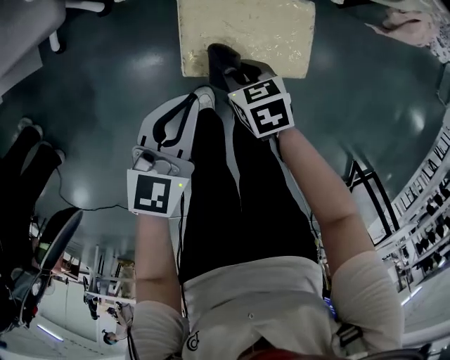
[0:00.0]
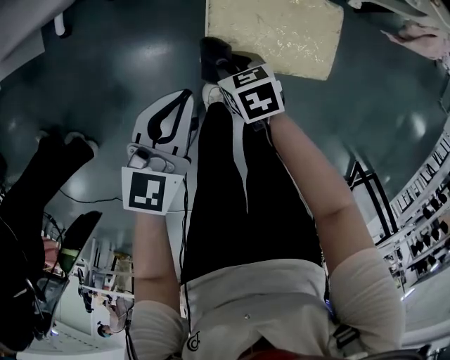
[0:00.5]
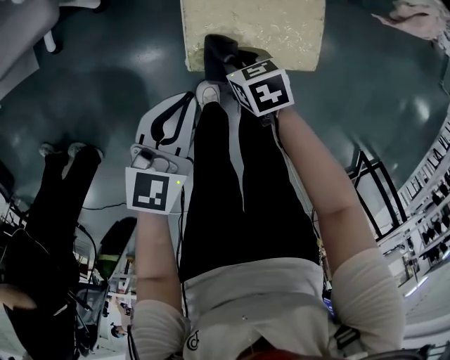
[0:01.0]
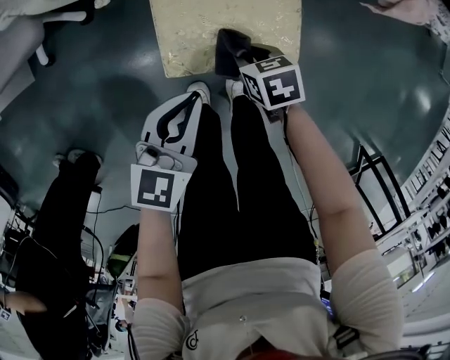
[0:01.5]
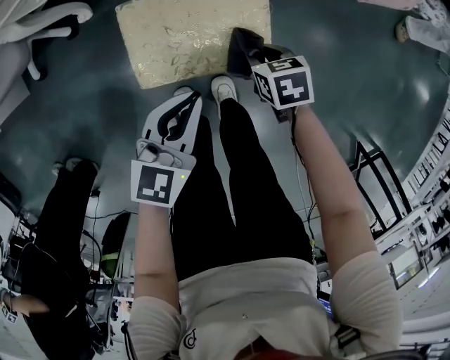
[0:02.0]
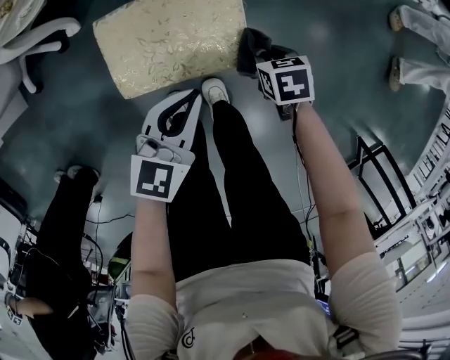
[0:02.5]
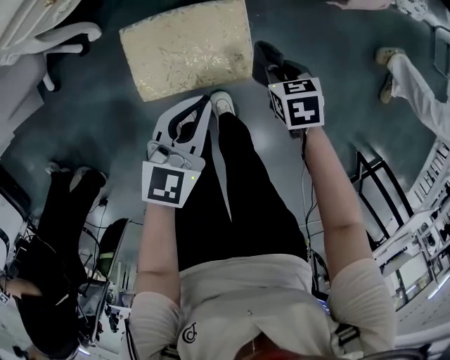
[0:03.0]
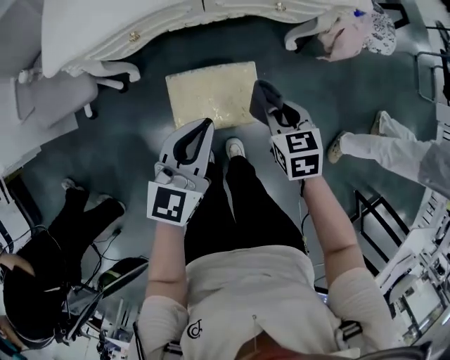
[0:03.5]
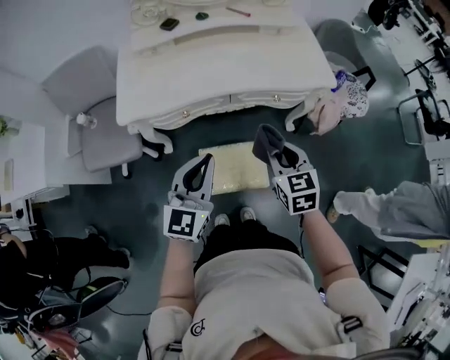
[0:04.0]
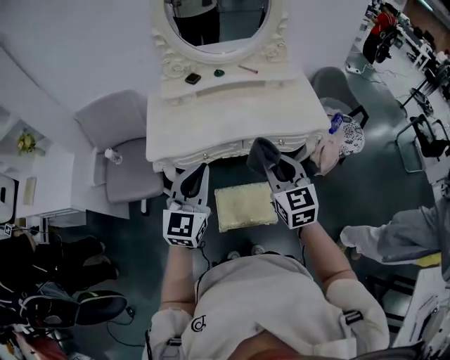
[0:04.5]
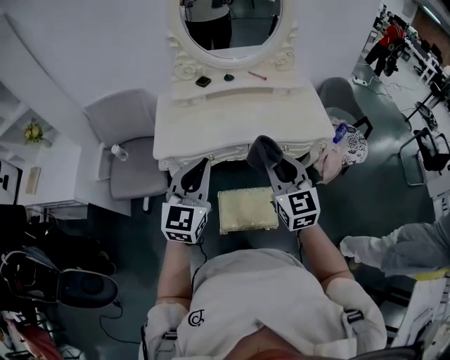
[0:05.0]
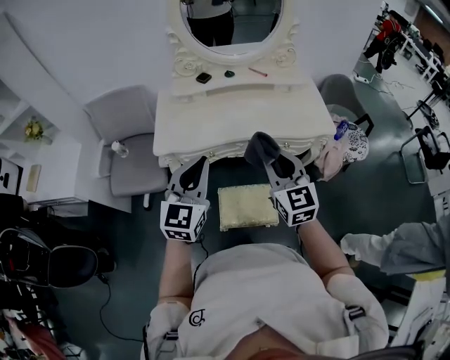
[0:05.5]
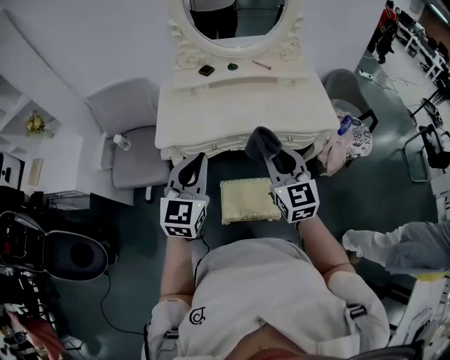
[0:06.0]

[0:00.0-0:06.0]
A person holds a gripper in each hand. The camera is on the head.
0:00.0 to 0:02.0: The left gripper moves to the right, roughly 10 cm, while the right gripper heads to the right, covering some 20 cm.
0:02.0 to 0:04.0: The grippers both shift upward by some 40 cm. The left gripper swivels approximately 30 degrees; the right gripper tips its fingers upward by roughly 40 degrees.
0:04.0 to 0:06.0: Both grippers move upward and to the left, some 20 cm. The right gripper changes its angle by about 30 degrees.

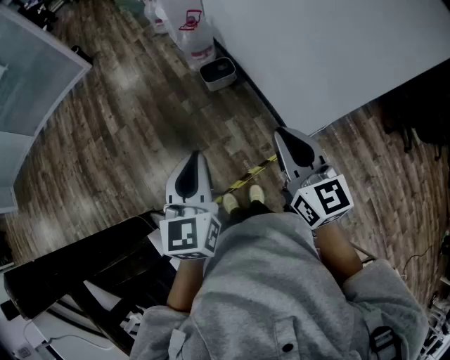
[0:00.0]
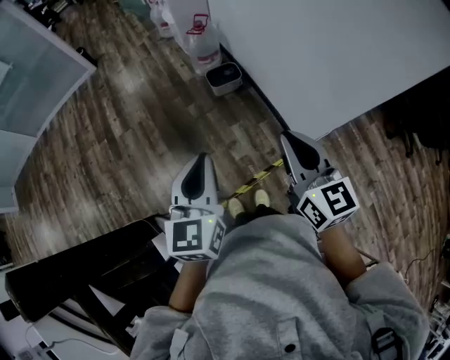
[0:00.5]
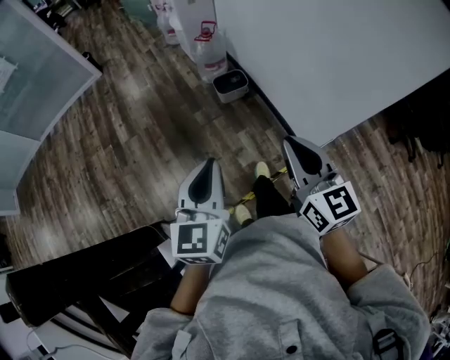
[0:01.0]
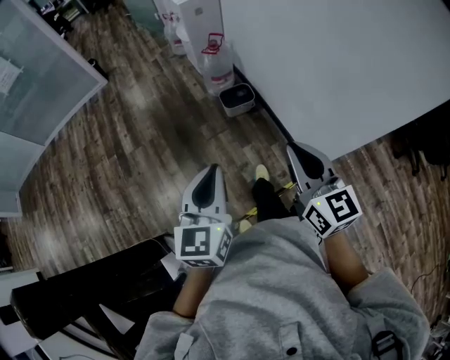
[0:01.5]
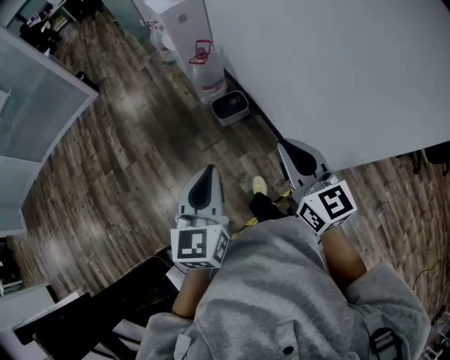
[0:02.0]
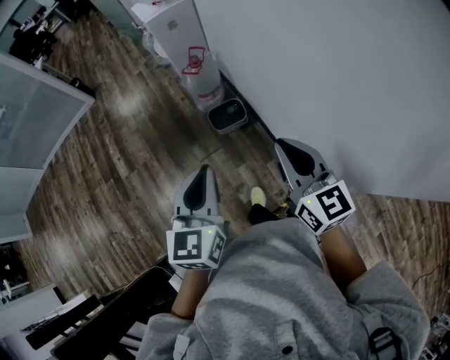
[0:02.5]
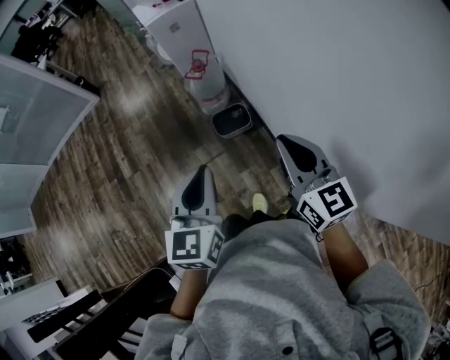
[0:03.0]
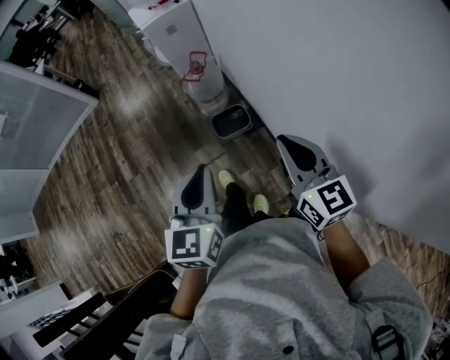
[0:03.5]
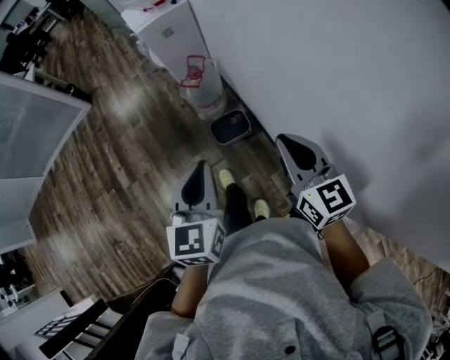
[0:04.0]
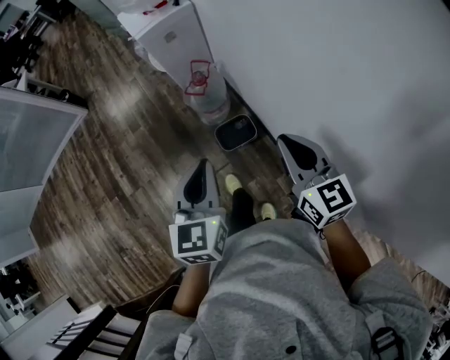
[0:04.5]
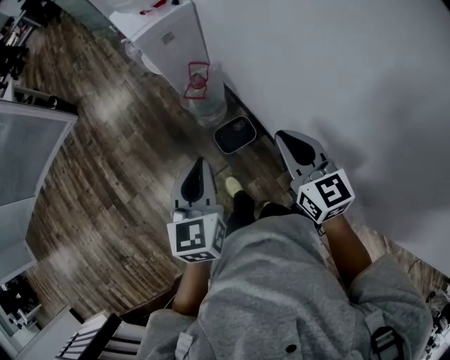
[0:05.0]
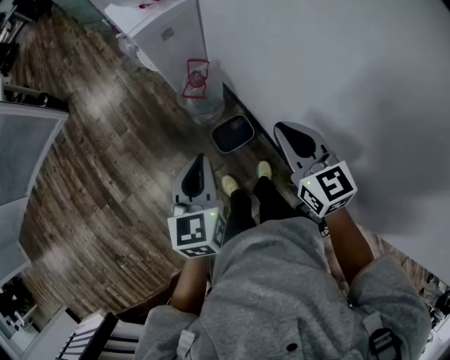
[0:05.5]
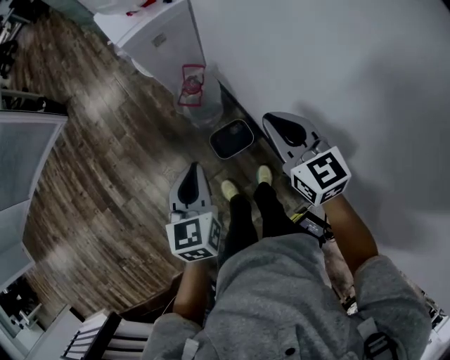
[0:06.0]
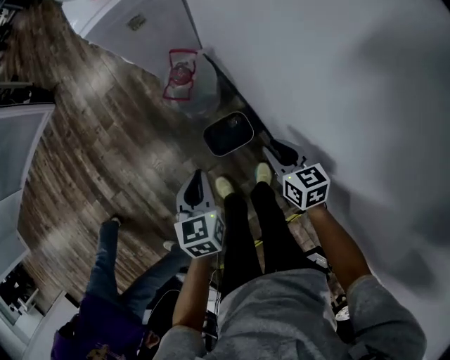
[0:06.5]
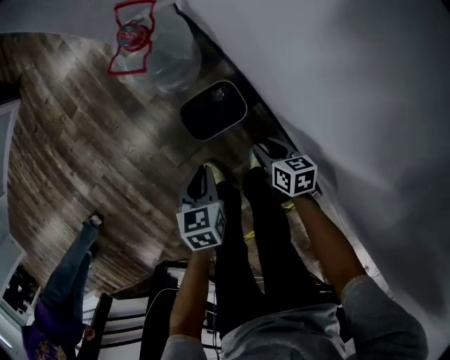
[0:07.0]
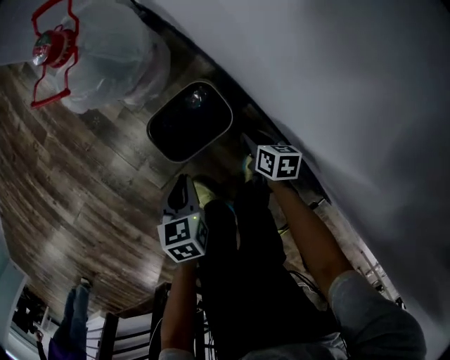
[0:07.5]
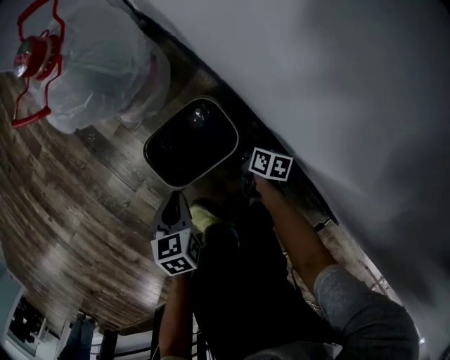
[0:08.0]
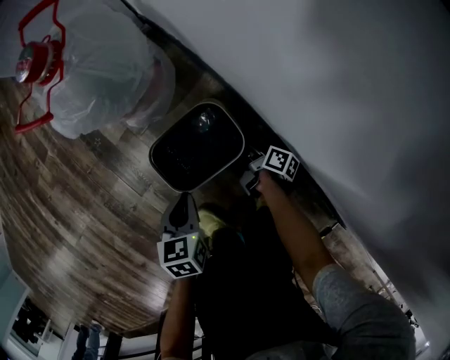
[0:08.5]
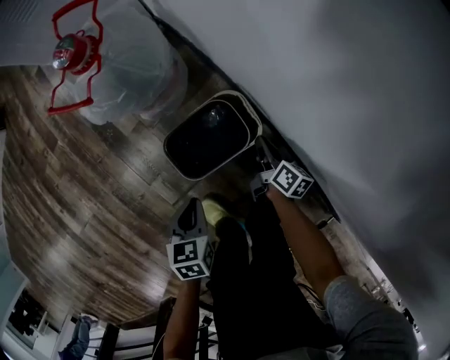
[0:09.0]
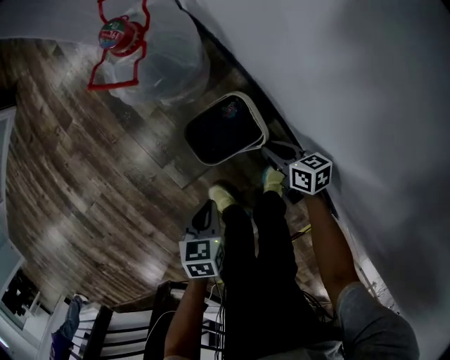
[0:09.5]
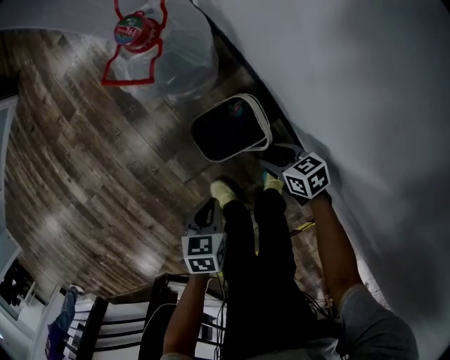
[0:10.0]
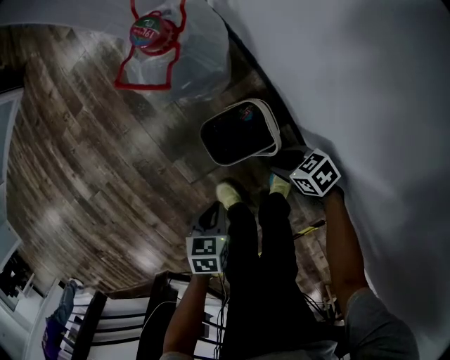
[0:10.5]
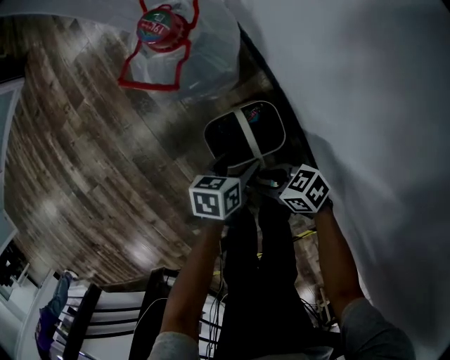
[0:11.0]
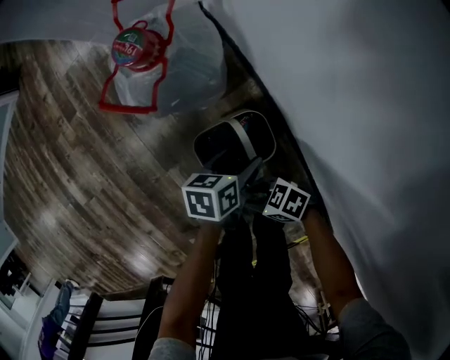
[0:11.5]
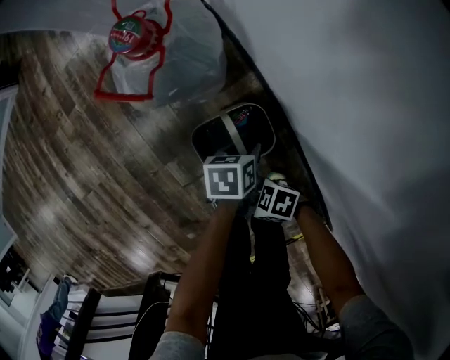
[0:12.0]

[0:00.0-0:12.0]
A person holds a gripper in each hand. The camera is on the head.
0:00.0 to 0:02.0: The two grippers go approximately 20 cm forward.
0:02.0 to 0:04.0: The two grippers go roughly 30 cm forward.
0:04.0 to 0:06.0: The right gripper goes some 25 cm forward; the left gripper is displaced forward and downward by some 25 cm.
0:06.0 to 0:08.0: The grippers both shift downward by about 80 cm. The left gripper rotates roughly 30 degrees. Meanwhile the right gripper twists some 60 degrees clockwise, seen from behind, and opens up.
0:08.0 to 0:10.0: The right gripper is displaced upward by about 20 cm, twists approximately 40 degrees counterclockwise, seen from behind, and closes and opens again; the left gripper shifts roughly 15 cm upward.
0:10.0 to 0:12.0: The right gripper changes place by some 15 cm, and rotates some 50 degrees; the left gripper shifts by about 20 cm, and opens its fingers.

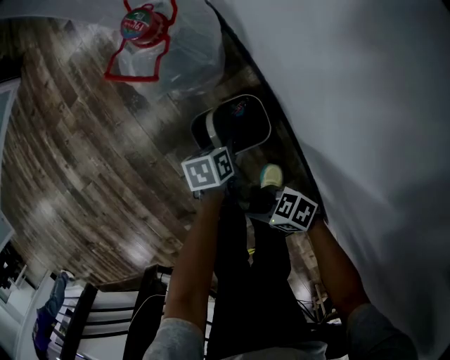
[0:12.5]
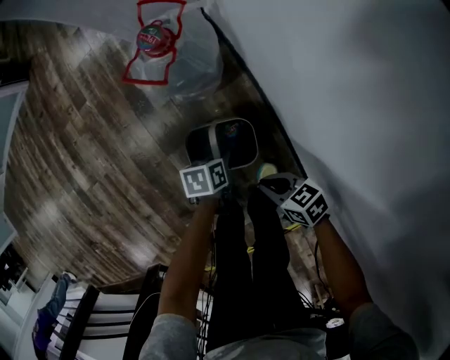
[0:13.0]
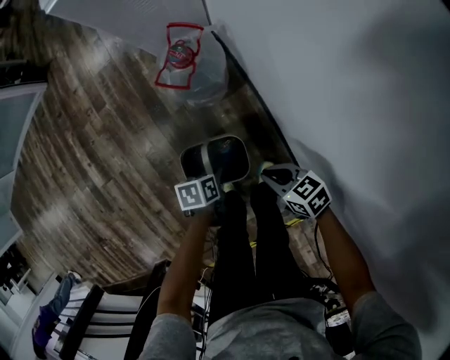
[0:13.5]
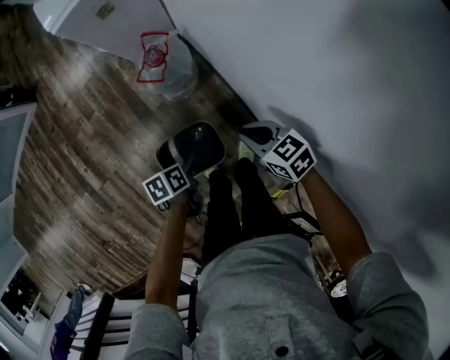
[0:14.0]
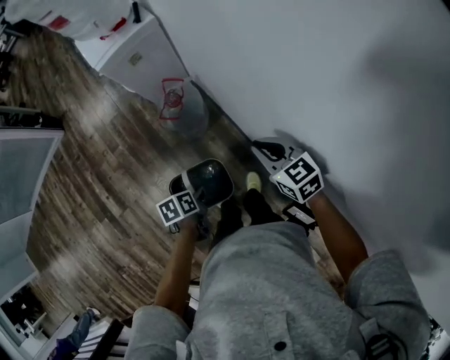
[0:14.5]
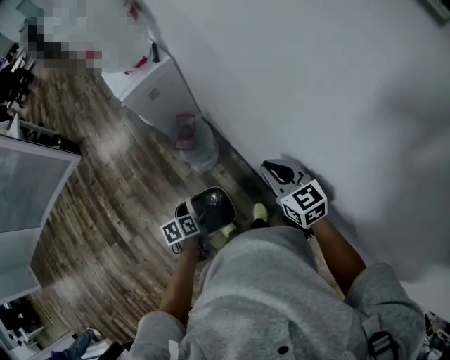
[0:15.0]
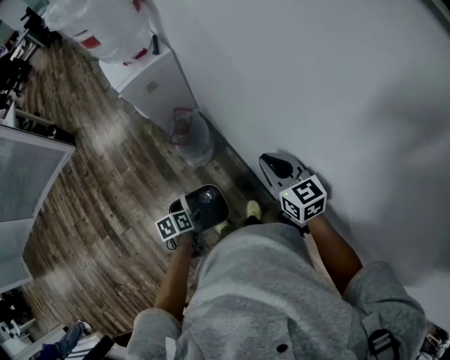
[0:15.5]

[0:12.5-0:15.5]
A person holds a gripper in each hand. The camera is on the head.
0:12.5 to 0:14.0: The two grippers go about 35 cm upward. The right gripper changes its angle by some 40 degrees, and closes its fingers.
0:14.0 to 0:15.5: The left gripper goes about 10 cm upward; the right gripper travels upward by about 25 cm, and turns by some 30 degrees.

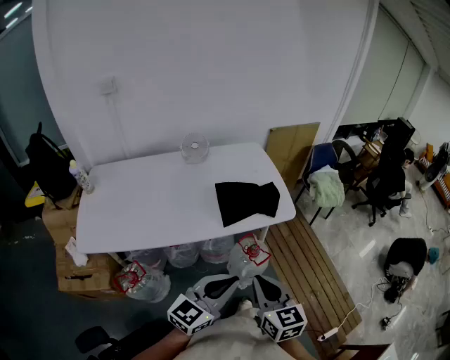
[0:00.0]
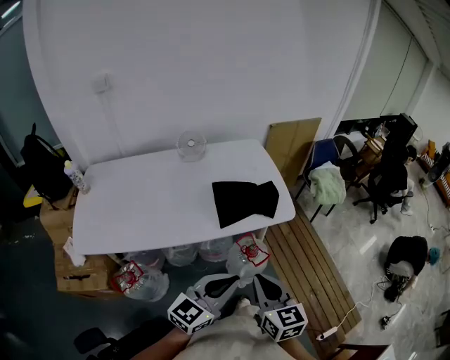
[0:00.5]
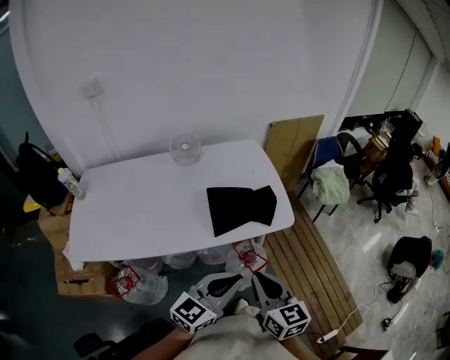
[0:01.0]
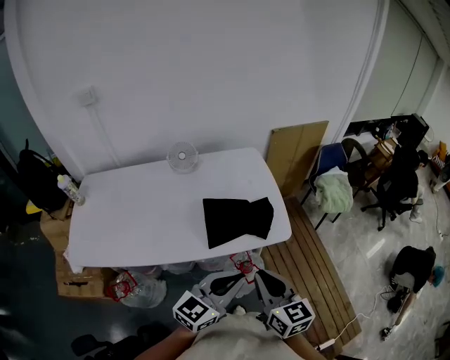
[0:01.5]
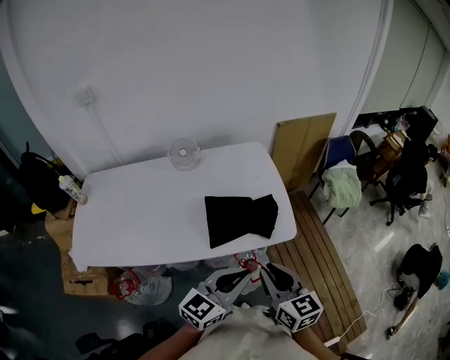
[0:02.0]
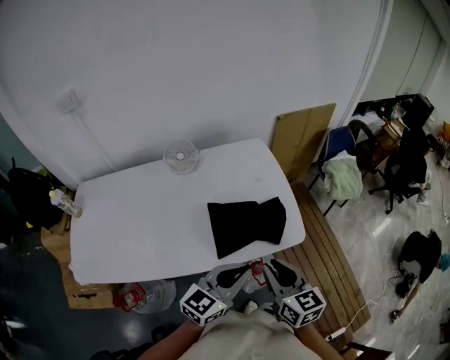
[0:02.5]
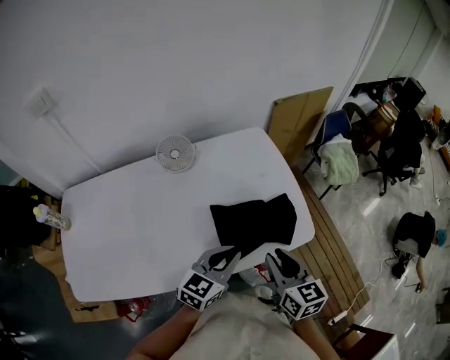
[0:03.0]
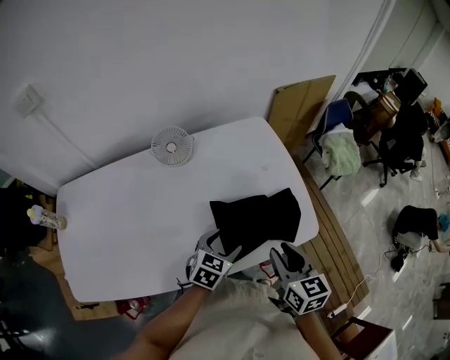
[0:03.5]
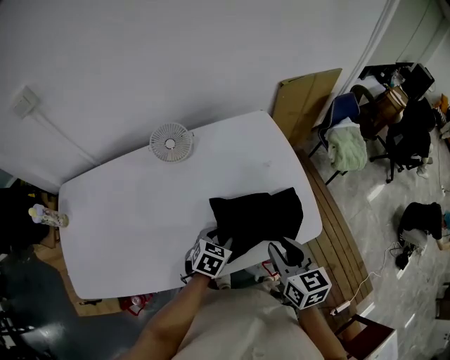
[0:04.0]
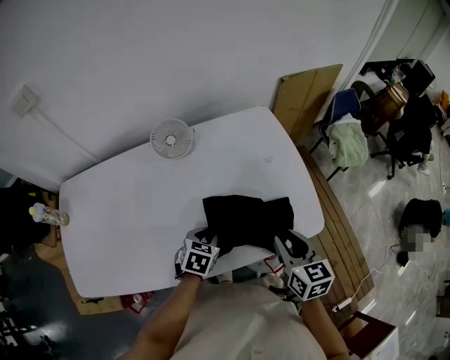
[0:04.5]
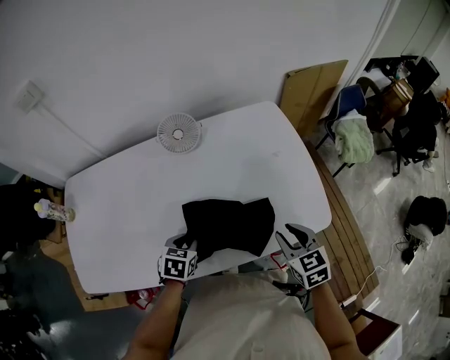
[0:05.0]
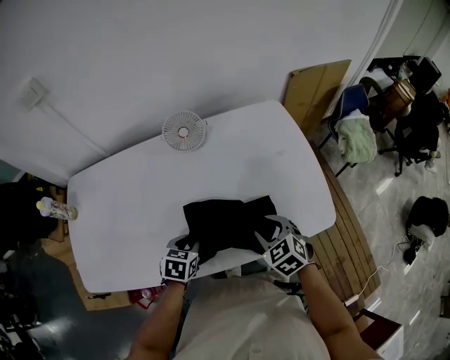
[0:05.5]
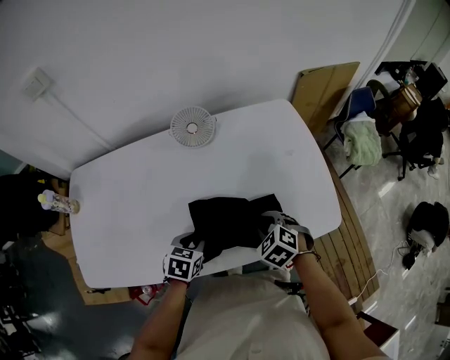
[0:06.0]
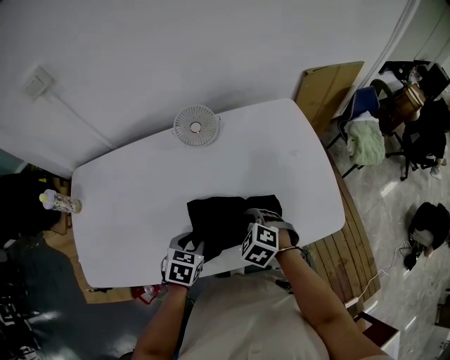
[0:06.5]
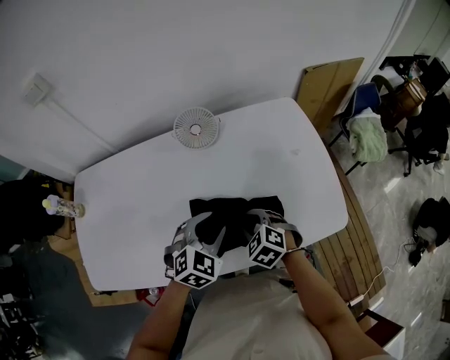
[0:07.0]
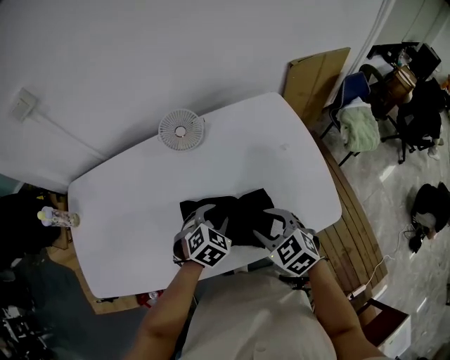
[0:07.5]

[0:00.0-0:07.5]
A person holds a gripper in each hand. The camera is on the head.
0:00.0 to 0:02.0: The left gripper heads forward and to the right, covering roughly 20 cm; the right gripper is displaced forward by roughly 20 cm.
0:02.0 to 0:04.0: The left gripper shifts approximately 35 cm downward, forward and to the left, tips its fingers downward by some 40 degrees, and opens, while the right gripper heads forward, downward and to the left, covering about 20 cm.
0:04.0 to 0:05.5: The left gripper shifts about 15 cm to the left. The right gripper travels downward and to the left by about 10 cm, and swivels about 40 degrees.
0:05.5 to 0:07.5: The left gripper shifts approximately 10 cm to the right and forward, and turns by approximately 40 degrees. The right gripper reaches roughly 10 cm to the left, then returns.
